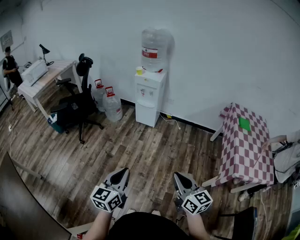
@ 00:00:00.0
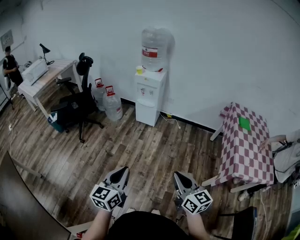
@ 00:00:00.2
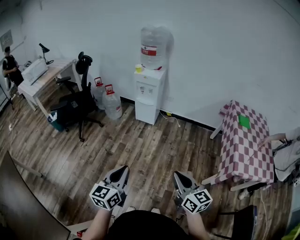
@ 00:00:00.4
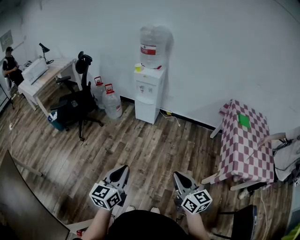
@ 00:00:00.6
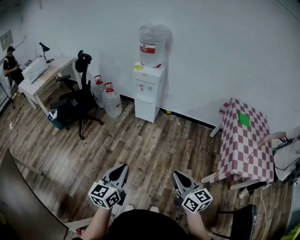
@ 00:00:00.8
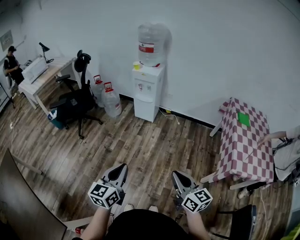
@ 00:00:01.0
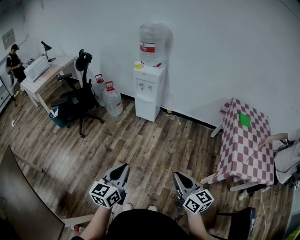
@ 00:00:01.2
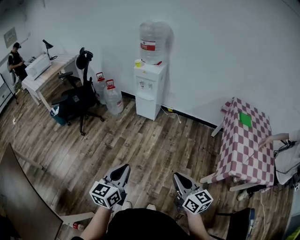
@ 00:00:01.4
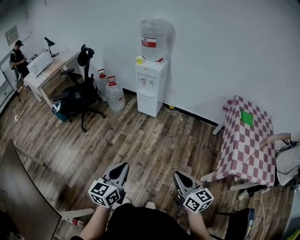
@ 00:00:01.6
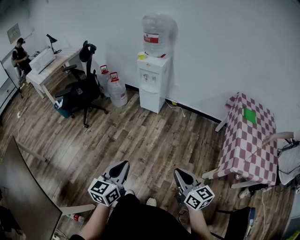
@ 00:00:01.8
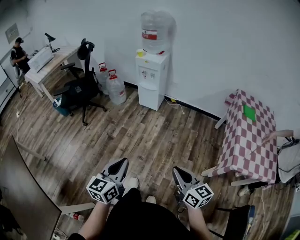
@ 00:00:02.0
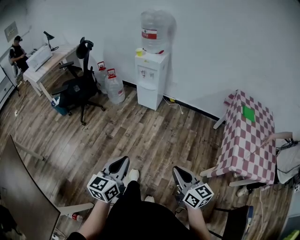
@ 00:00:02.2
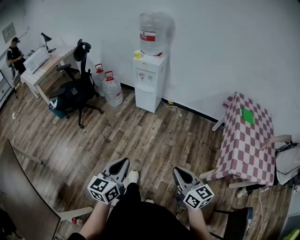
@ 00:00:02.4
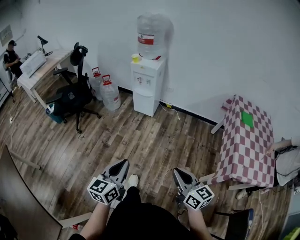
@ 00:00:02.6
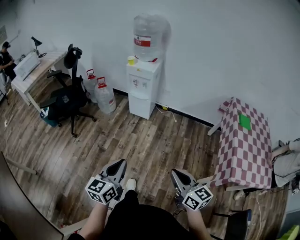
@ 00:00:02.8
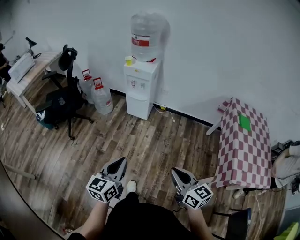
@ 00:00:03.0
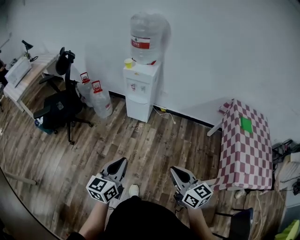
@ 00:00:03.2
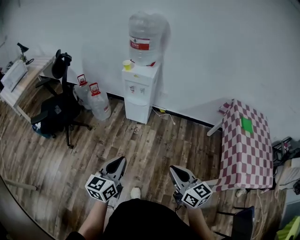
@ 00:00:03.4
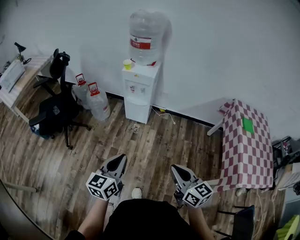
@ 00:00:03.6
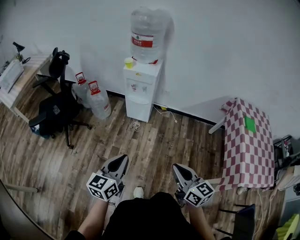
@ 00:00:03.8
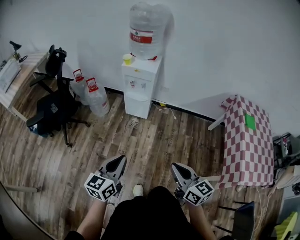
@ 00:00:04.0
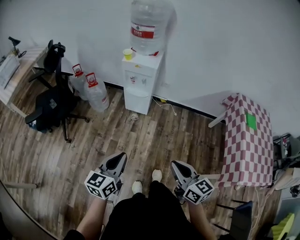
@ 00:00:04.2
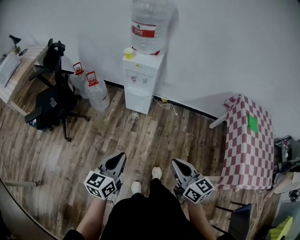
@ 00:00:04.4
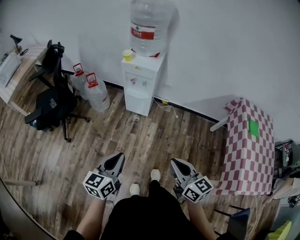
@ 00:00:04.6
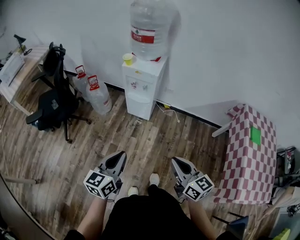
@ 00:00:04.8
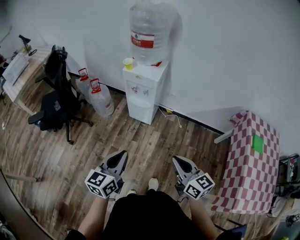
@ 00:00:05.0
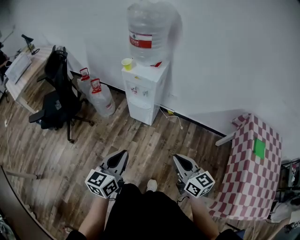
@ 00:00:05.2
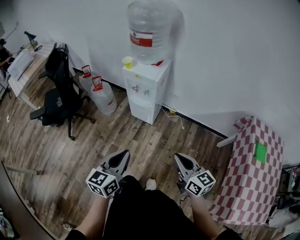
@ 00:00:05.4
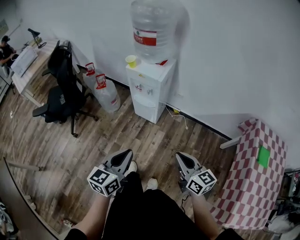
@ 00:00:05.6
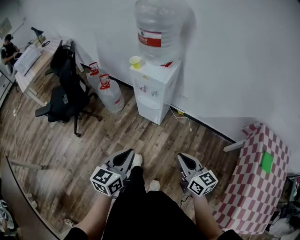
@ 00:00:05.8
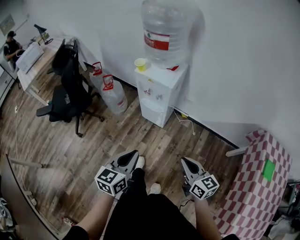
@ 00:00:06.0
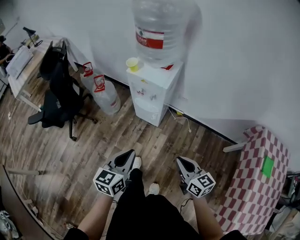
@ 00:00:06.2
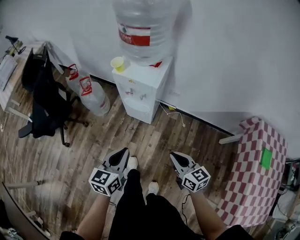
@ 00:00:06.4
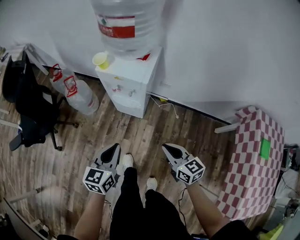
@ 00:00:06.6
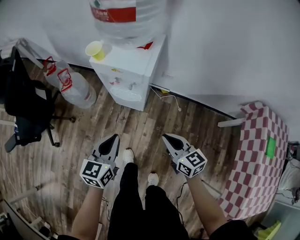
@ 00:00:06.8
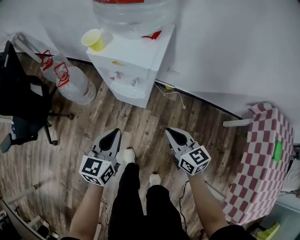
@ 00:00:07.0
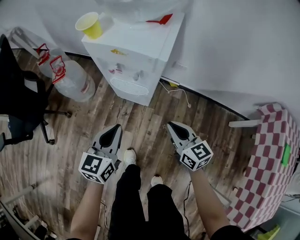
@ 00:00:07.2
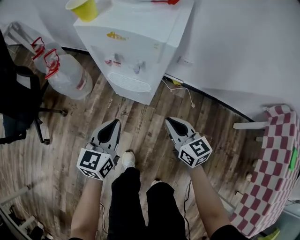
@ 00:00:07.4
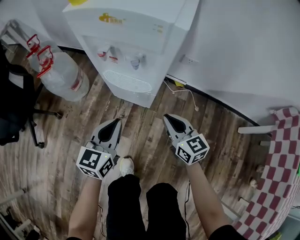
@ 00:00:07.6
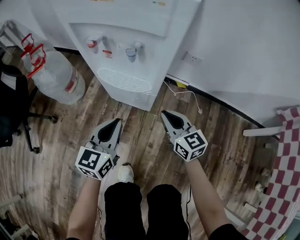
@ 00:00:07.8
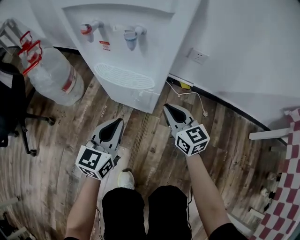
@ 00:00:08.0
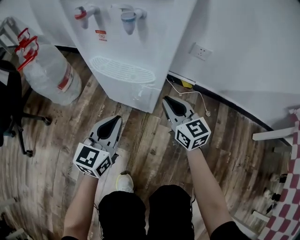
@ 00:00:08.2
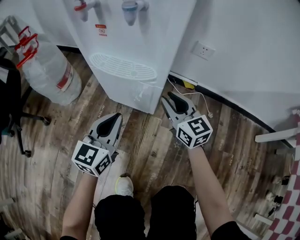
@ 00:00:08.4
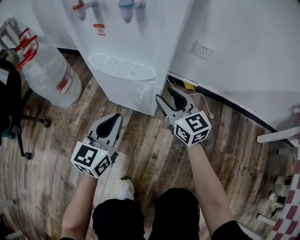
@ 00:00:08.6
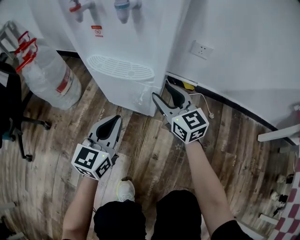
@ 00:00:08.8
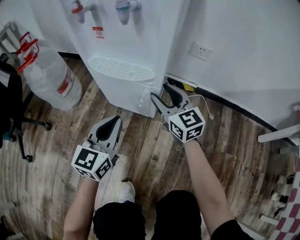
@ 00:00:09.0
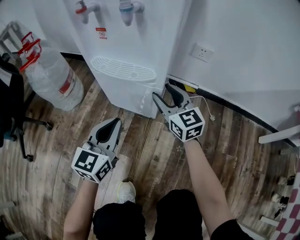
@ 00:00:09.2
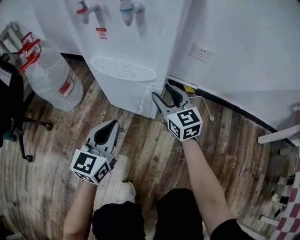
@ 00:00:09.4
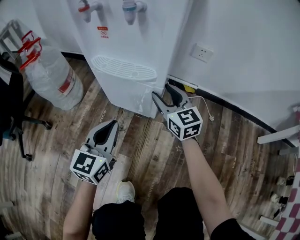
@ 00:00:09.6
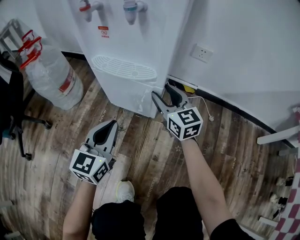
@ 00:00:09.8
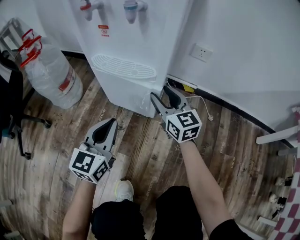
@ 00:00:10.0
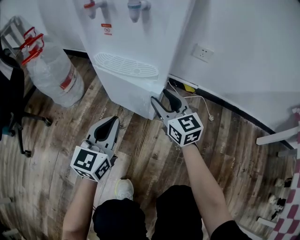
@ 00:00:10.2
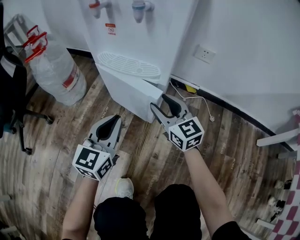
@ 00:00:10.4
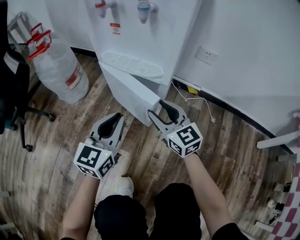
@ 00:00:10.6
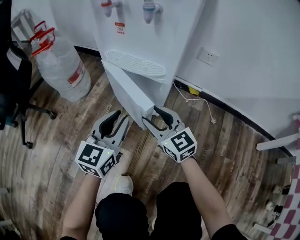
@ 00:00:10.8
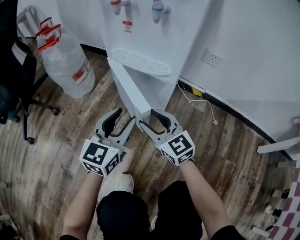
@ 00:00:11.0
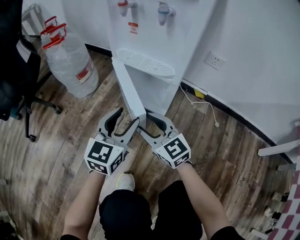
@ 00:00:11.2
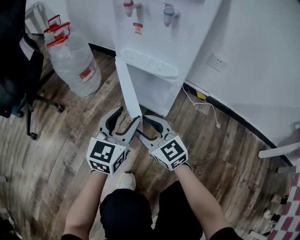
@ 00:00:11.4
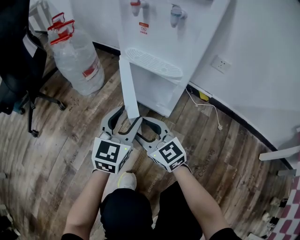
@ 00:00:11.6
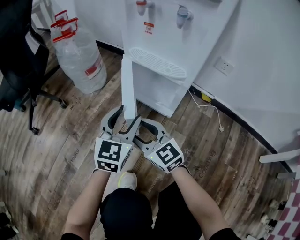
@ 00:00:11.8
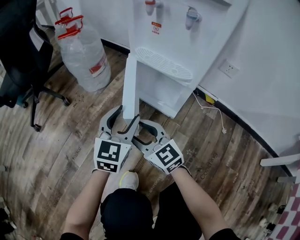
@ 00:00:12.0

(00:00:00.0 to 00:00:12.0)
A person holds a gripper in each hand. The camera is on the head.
00:00:00.0 - 00:00:01.6: Both grippers move to the right, about 10 cm.
00:00:01.6 - 00:00:03.0: Both grippers move forward, some 15 cm.
00:00:03.0 - 00:00:04.4: The two grippers go roughly 20 cm forward and to the left.
00:00:04.4 - 00:00:06.0: The two grippers go some 25 cm forward and to the right.
00:00:06.0 - 00:00:07.6: Both grippers travel together downward and forward, about 50 cm.
00:00:07.6 - 00:00:09.0: The right gripper travels downward and forward by approximately 20 cm, and opens its fingers, while the left gripper is displaced downward by approximately 15 cm.
00:00:09.0 - 00:00:10.4: The right gripper shifts by approximately 5 cm.
00:00:10.4 - 00:00:12.0: The right gripper shifts some 20 cm to the left and backward, and changes its angle by some 30 degrees. Meanwhile the left gripper travels to the left by some 5 cm, and opens.

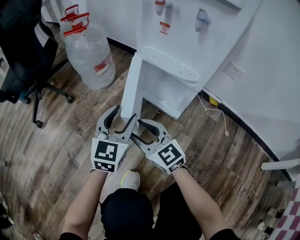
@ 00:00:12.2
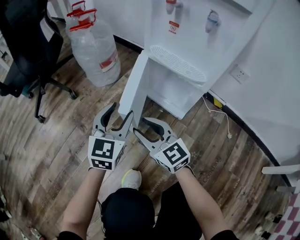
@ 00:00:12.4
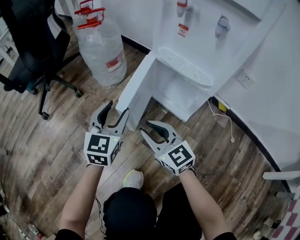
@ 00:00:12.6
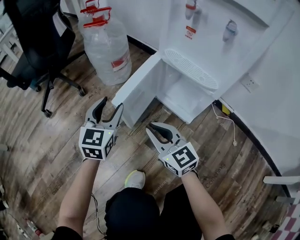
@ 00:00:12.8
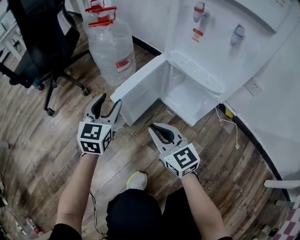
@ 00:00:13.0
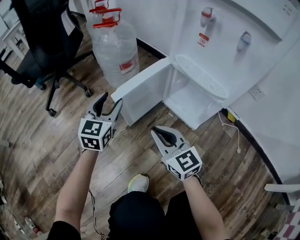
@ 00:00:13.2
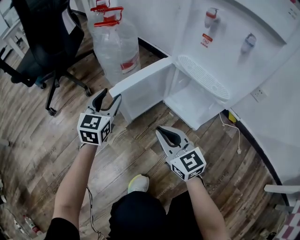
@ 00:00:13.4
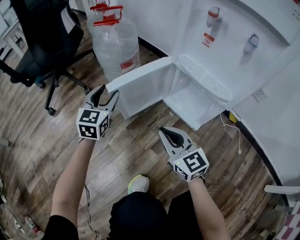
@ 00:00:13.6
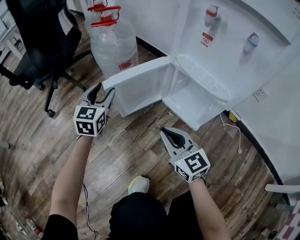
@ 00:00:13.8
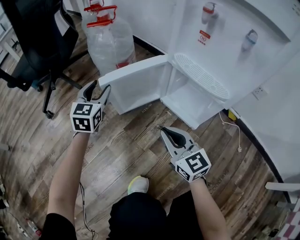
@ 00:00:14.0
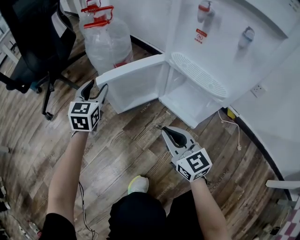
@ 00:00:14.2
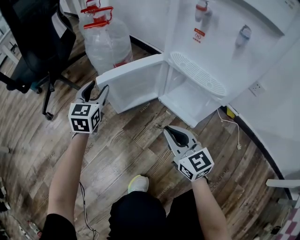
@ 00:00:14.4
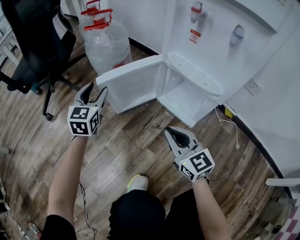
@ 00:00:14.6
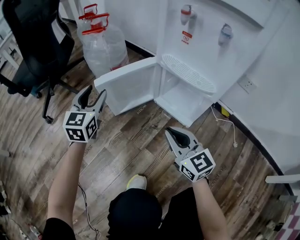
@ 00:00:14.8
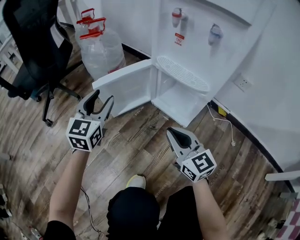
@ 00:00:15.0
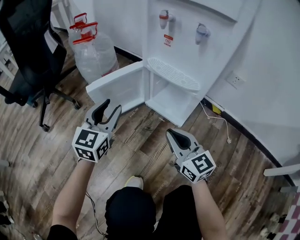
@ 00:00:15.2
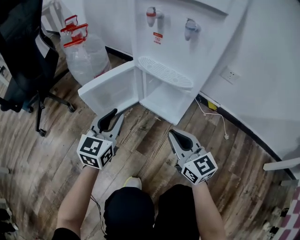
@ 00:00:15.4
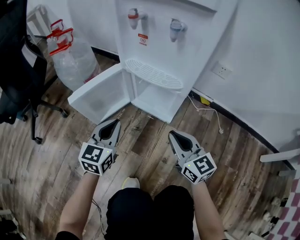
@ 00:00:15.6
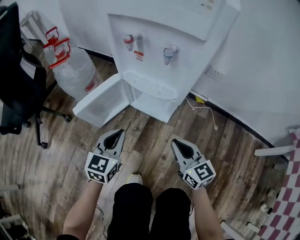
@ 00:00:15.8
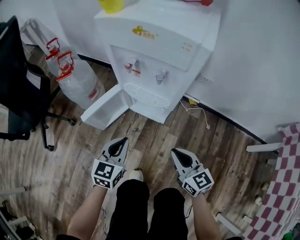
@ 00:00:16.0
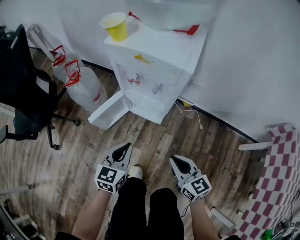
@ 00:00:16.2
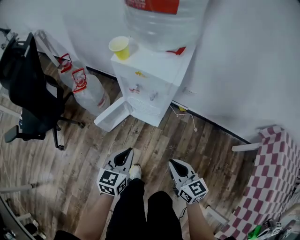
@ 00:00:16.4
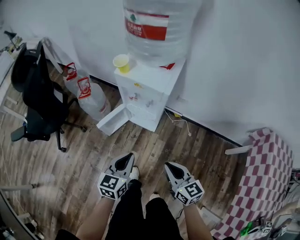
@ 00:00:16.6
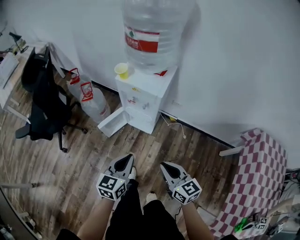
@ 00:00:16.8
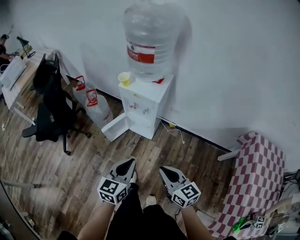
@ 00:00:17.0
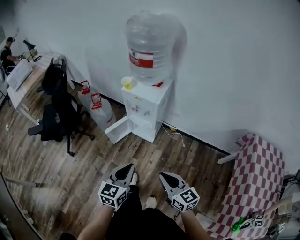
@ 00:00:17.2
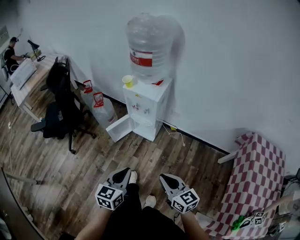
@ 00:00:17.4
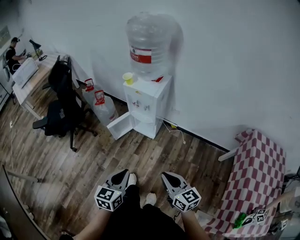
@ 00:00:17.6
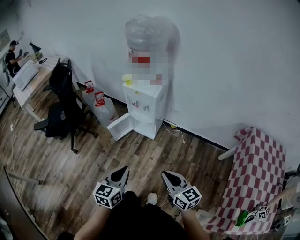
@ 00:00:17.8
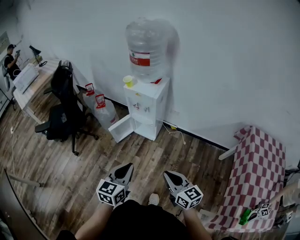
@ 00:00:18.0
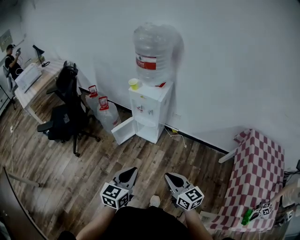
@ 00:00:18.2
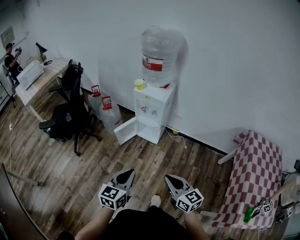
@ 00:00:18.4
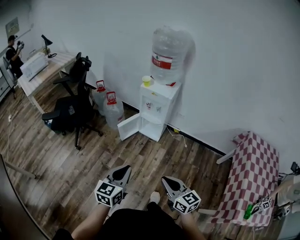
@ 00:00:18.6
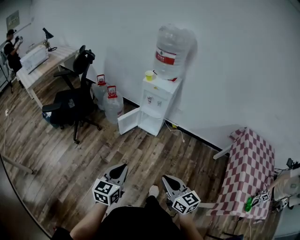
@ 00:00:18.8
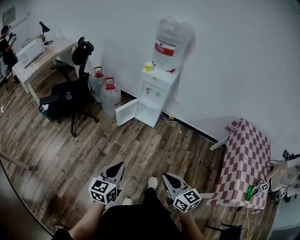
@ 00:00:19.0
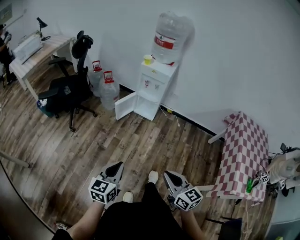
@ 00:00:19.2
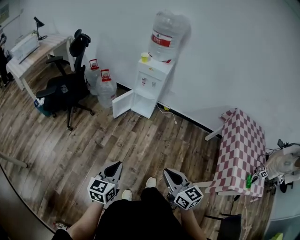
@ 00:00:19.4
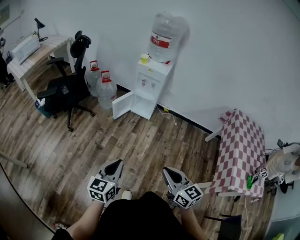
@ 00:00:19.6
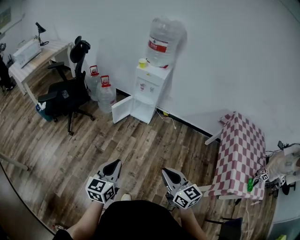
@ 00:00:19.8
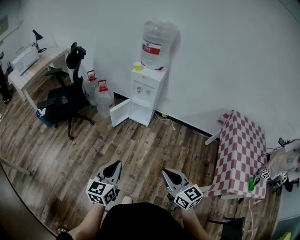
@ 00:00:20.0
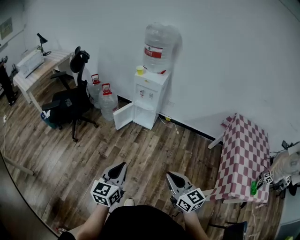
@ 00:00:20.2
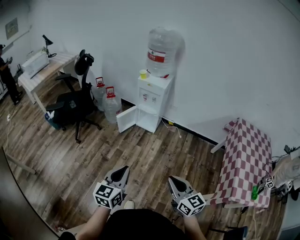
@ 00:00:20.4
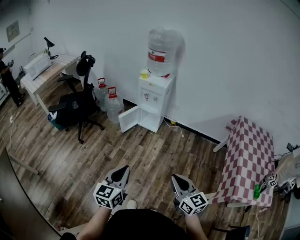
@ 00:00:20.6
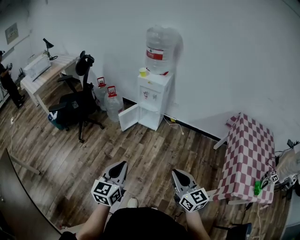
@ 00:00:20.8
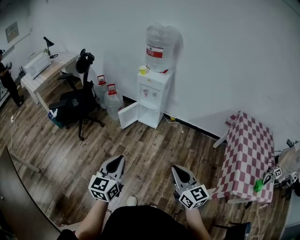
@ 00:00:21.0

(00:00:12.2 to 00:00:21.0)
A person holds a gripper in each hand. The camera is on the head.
00:00:12.2 - 00:00:13.6: The left gripper heads forward and to the left, covering some 20 cm. The right gripper closes.
00:00:13.6 - 00:00:15.2: The left gripper goes some 15 cm backward, to the right and upward; the right gripper is displaced to the right and backward by roughly 10 cm.
00:00:15.2 - 00:00:16.6: The left gripper moves upward and backward, some 40 cm, rotates some 30 degrees, and closes its fingers. The right gripper shifts approximately 40 cm upward, and turns by about 20 degrees.
00:00:16.6 - 00:00:18.0: The grippers both shift backward and upward by approximately 30 cm.
00:00:18.0 - 00:00:19.6: The two grippers go some 35 cm backward and to the left.
00:00:19.6 - 00:00:21.0: The right gripper heads to the right and upward, covering about 10 cm. The left gripper heads upward and to the right, covering approximately 10 cm.
